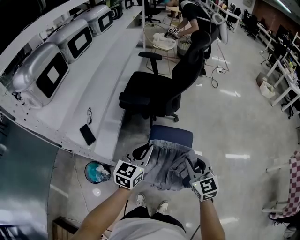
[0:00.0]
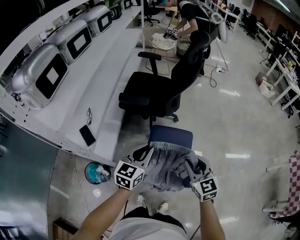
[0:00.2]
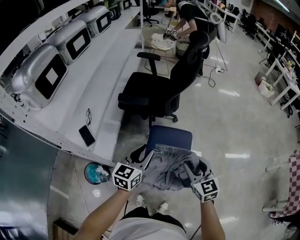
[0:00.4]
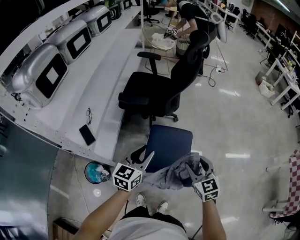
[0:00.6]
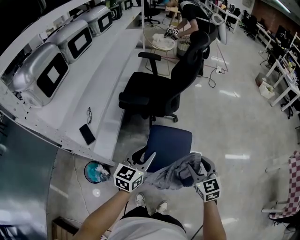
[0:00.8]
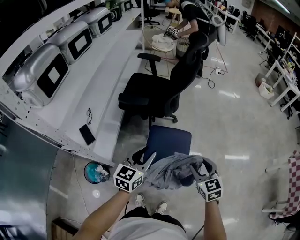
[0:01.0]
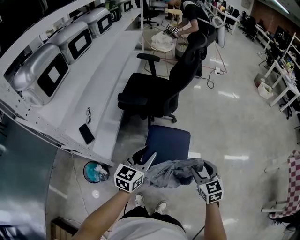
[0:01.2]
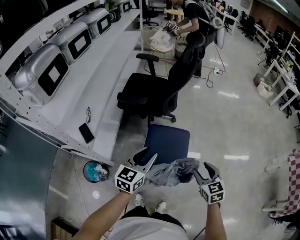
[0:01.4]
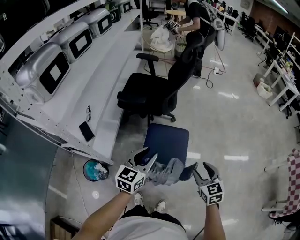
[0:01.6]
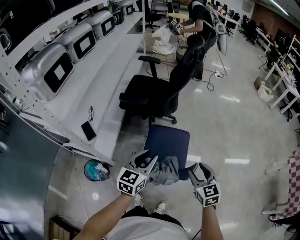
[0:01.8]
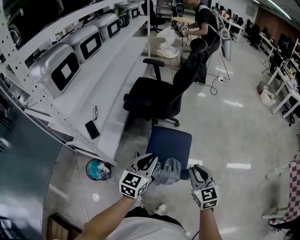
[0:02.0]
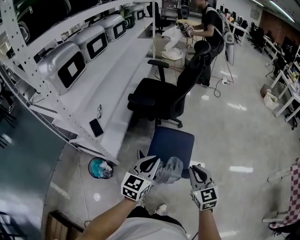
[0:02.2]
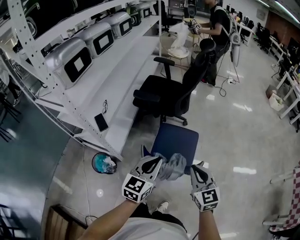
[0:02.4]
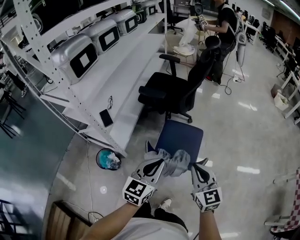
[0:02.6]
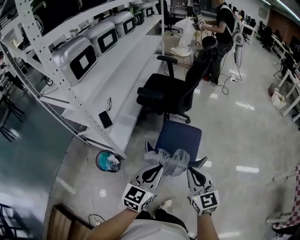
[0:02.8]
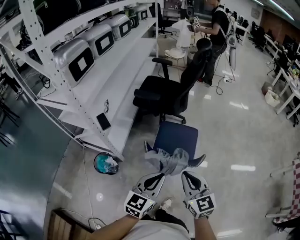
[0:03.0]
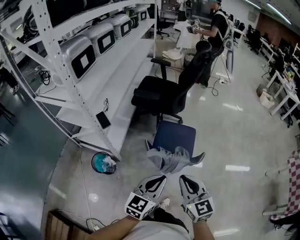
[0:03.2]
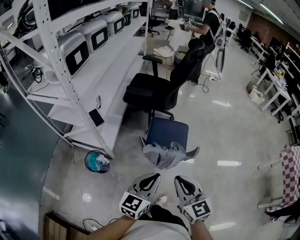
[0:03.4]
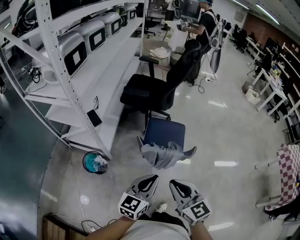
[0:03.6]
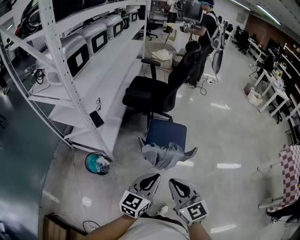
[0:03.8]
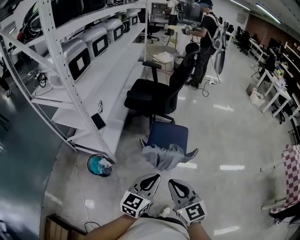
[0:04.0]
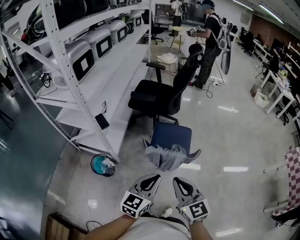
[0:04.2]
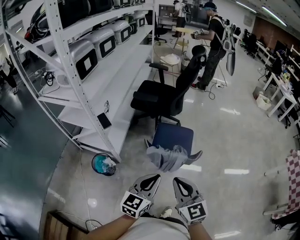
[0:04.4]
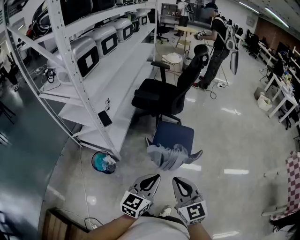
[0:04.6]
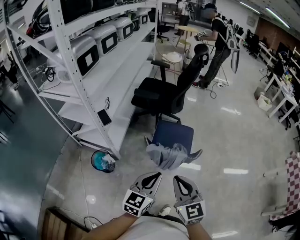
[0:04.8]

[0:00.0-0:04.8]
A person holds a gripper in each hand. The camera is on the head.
0:00.0 to 0:01.6: The right gripper goes some 10 cm to the right and backward, and opens up. The left gripper goes some 5 cm backward, and opens.
0:01.6 to 0:03.2: The left gripper moves backward, roughly 25 cm, and closes up; the right gripper travels backward, to the left and upward by some 25 cm, swivels roughly 20 degrees, and closes its fingers.
0:03.2 to 0:04.8: The right gripper is displaced backward by some 5 cm.

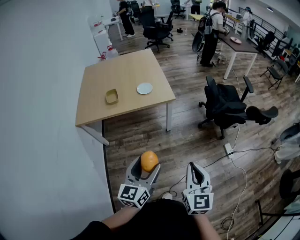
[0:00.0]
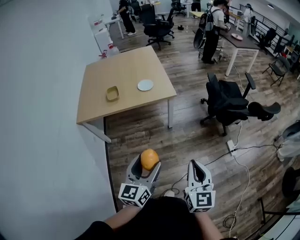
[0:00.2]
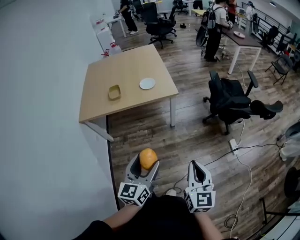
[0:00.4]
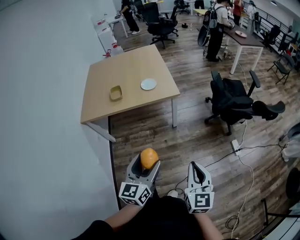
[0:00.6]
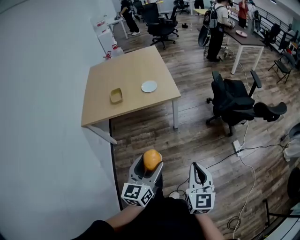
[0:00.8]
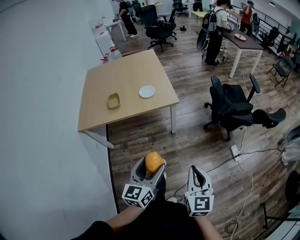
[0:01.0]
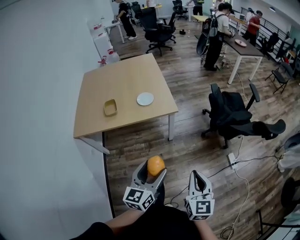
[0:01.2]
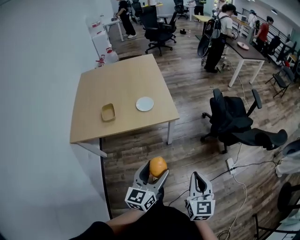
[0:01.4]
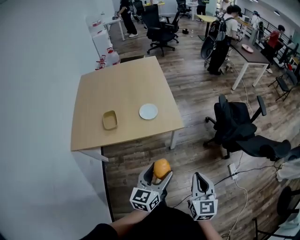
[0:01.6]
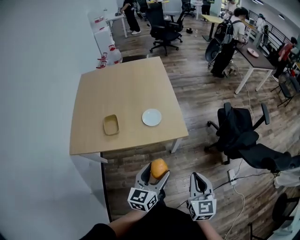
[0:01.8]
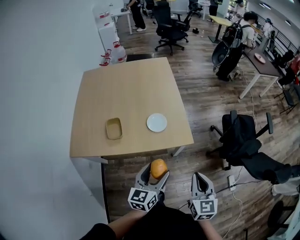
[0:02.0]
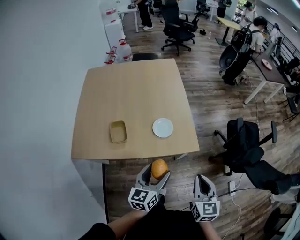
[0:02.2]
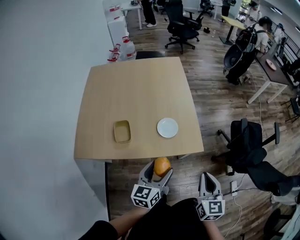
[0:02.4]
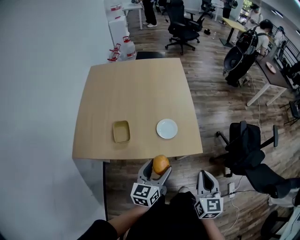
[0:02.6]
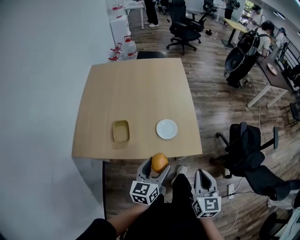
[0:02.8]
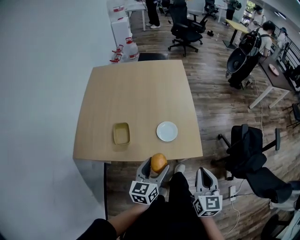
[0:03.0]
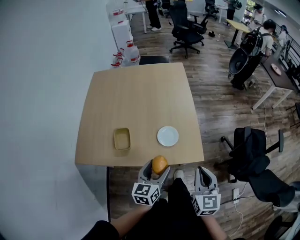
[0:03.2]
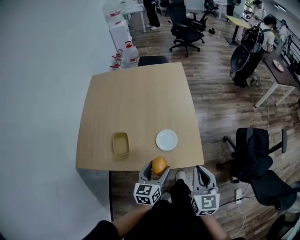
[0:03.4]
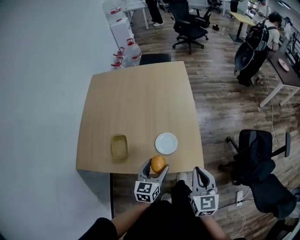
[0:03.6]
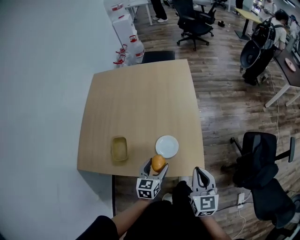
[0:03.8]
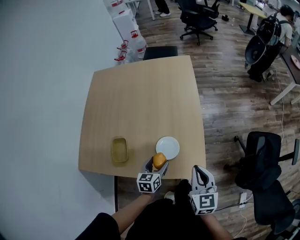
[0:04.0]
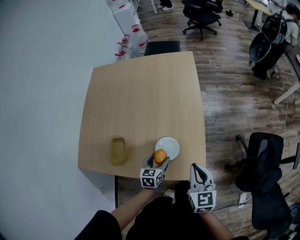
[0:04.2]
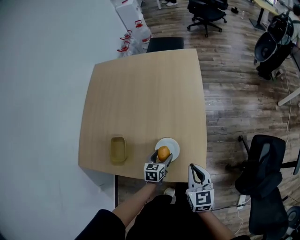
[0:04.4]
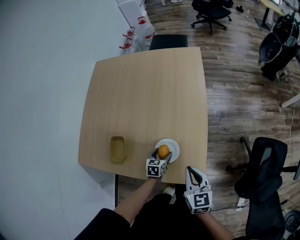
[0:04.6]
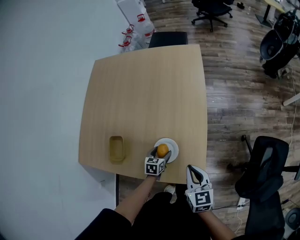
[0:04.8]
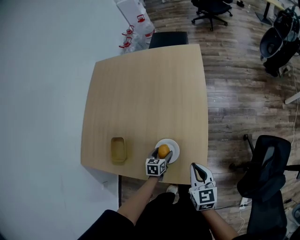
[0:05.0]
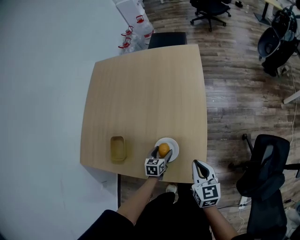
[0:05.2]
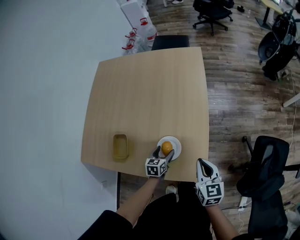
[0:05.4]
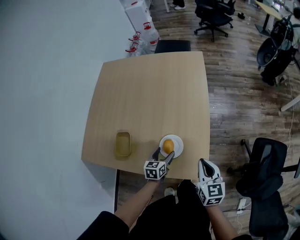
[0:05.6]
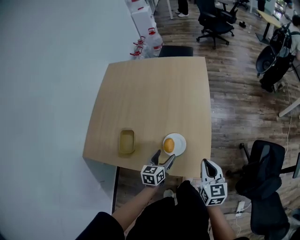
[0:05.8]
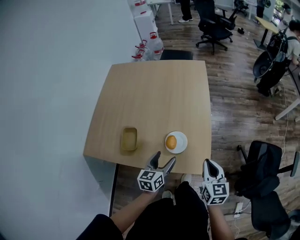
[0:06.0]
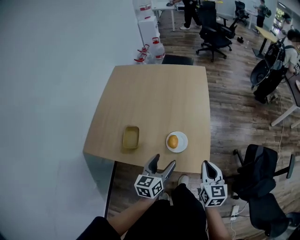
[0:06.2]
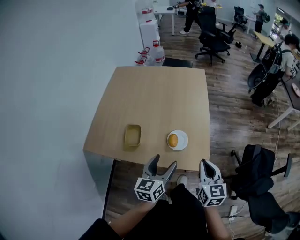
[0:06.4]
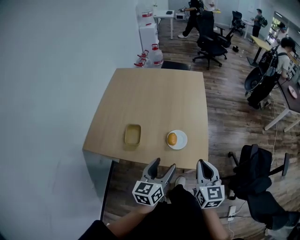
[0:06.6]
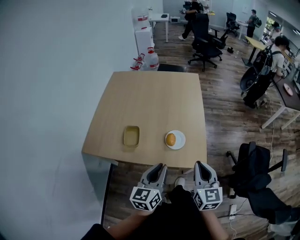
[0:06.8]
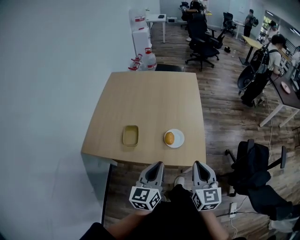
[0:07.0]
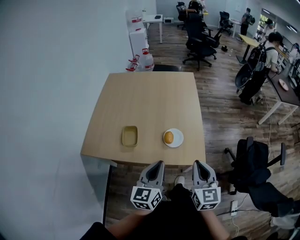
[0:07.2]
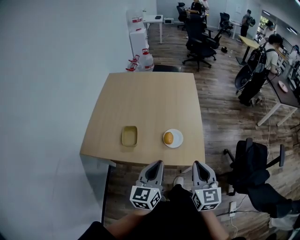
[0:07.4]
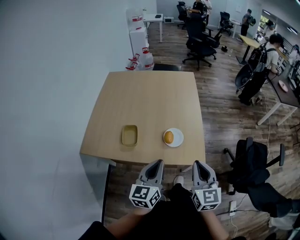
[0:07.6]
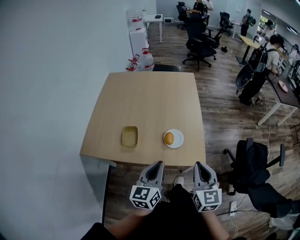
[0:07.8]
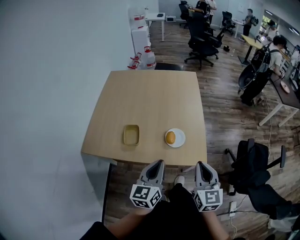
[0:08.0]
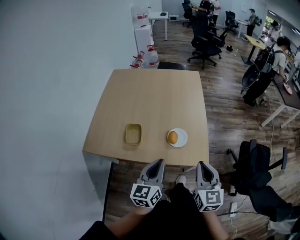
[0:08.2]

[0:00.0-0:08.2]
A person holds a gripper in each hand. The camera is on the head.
0:00.0 to 0:01.6: Both grippers move forward, approximately 25 cm.
0:01.6 to 0:03.2: Both grippers travel together forward and to the left, approximately 30 cm.
0:03.2 to 0:05.0: The right gripper travels forward and downward by roughly 25 cm, and swivels approximately 30 degrees, while the left gripper shifts approximately 35 cm downward and forward, and tips its fingers downward by about 30 degrees.
0:05.0 to 0:06.6: The right gripper travels backward, upward and to the left by about 20 cm. Meanwhile the left gripper shifts some 40 cm upward and backward, and points its fingers some 40 degrees further upward.
0:06.6 to 0:08.2: The left gripper closes.

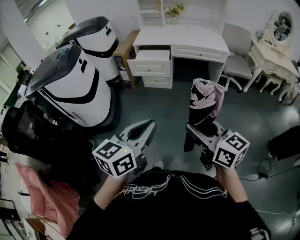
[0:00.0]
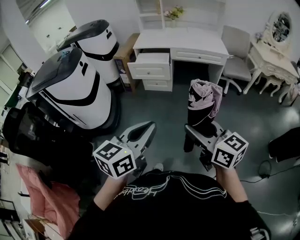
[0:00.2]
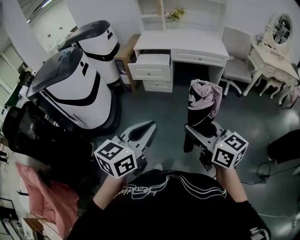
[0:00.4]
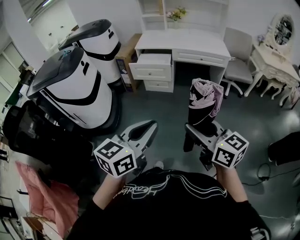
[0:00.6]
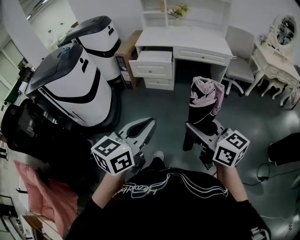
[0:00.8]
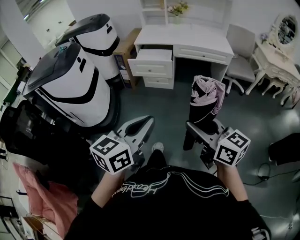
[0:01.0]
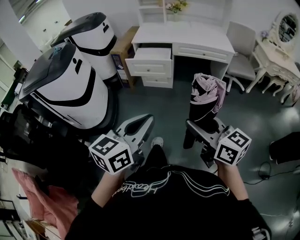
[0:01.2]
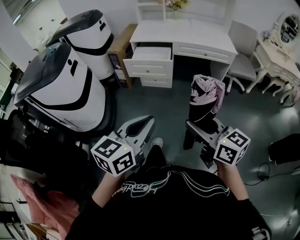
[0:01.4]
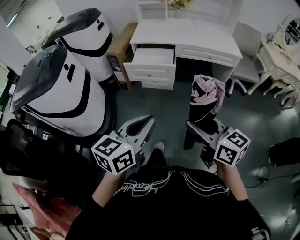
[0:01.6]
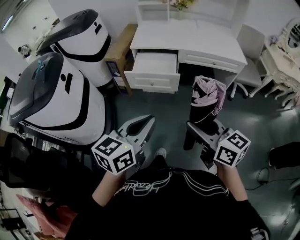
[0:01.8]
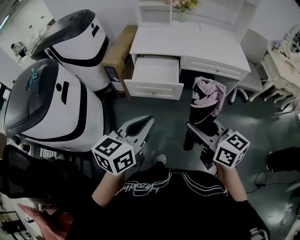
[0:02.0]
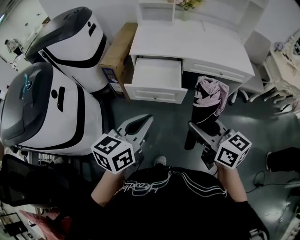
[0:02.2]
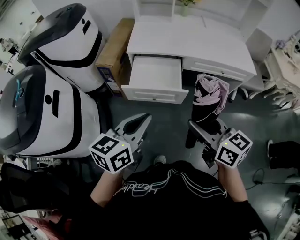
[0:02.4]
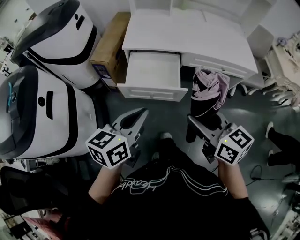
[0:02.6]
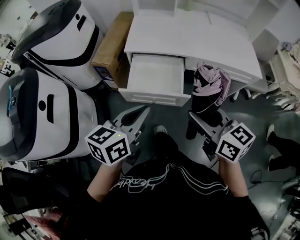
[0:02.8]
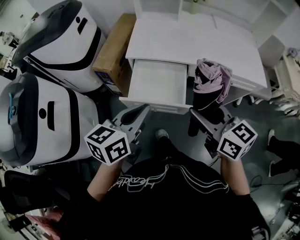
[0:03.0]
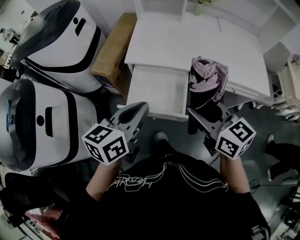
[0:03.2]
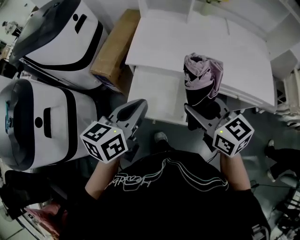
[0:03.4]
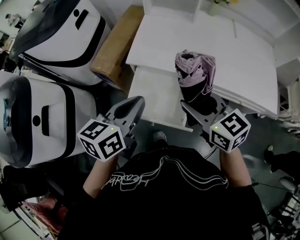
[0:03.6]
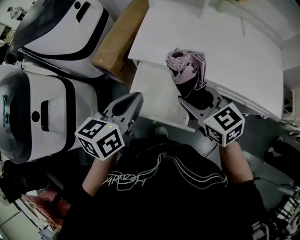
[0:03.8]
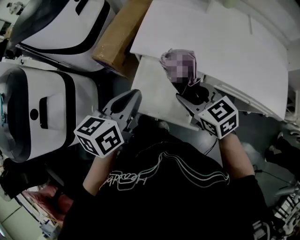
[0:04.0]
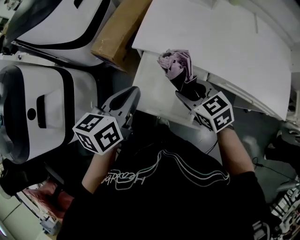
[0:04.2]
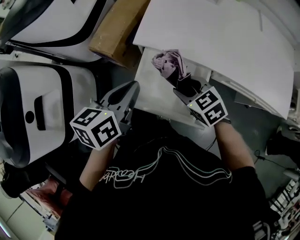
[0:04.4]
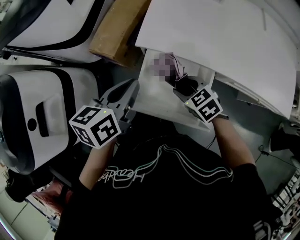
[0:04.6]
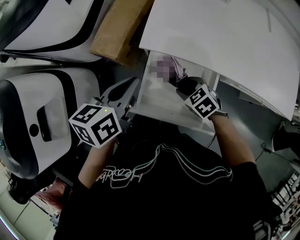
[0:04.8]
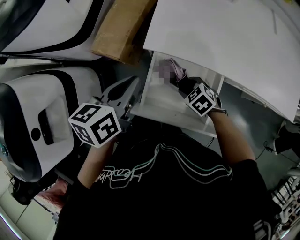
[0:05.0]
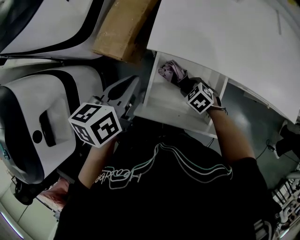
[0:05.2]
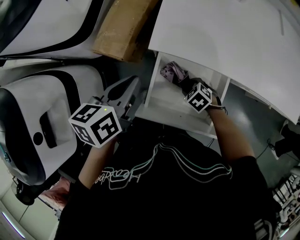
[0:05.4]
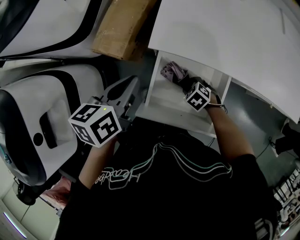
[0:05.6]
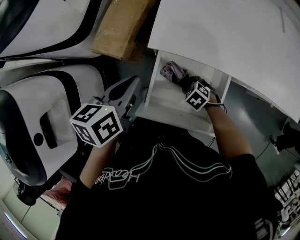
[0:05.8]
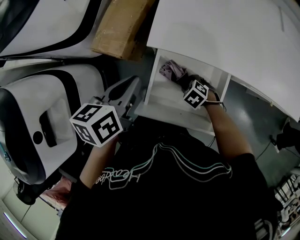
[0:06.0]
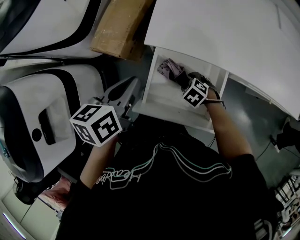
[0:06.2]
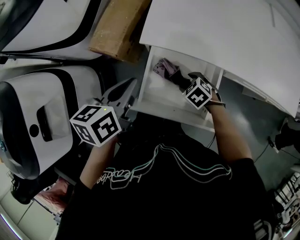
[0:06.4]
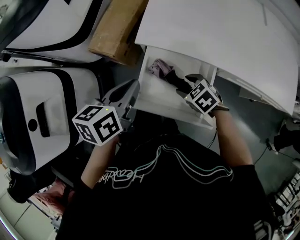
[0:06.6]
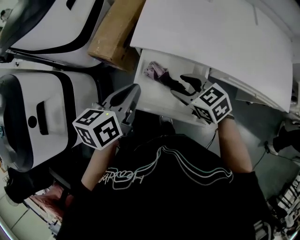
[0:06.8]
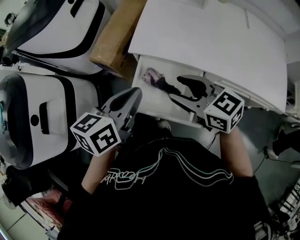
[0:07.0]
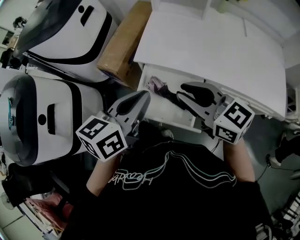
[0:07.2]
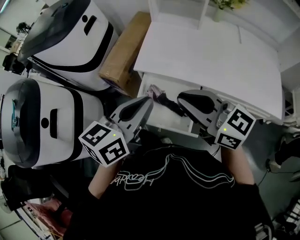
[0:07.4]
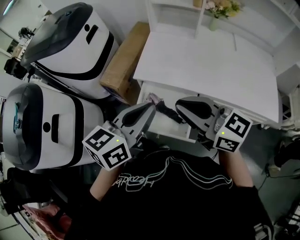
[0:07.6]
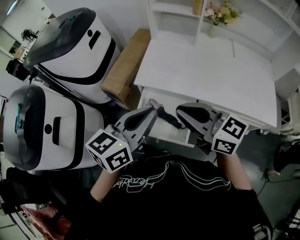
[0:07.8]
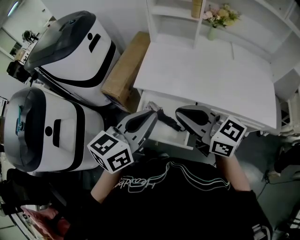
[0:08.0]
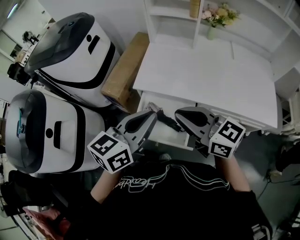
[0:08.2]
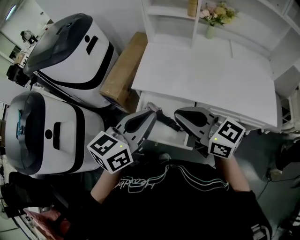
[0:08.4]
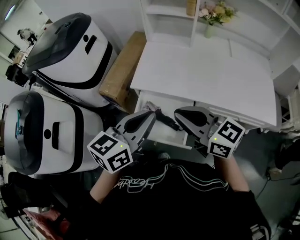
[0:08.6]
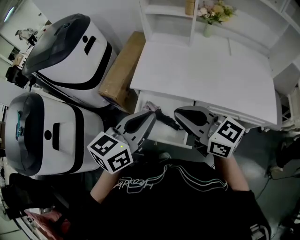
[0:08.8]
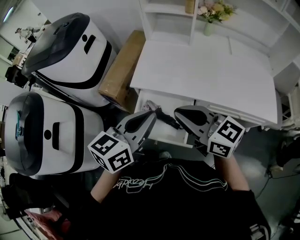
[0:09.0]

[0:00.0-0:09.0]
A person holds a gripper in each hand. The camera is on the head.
0:00.0 to 0:01.6: The two grippers go about 25 cm forward.
0:01.6 to 0:03.0: The pair of grippers is taken forward, about 50 cm.
0:03.0 to 0:04.4: The two grippers go some 30 cm forward and downward. The left gripper turns by about 20 degrees. Meanwhile the right gripper angles its fingers downward, by about 30 degrees.
0:04.4 to 0:06.0: The left gripper moves some 10 cm; the right gripper travels downward by about 20 cm, and turns by about 30 degrees.
0:06.0 to 0:07.6: The left gripper ends up approximately 30 cm from where it was, and turns by approximately 30 degrees; the right gripper shifts about 50 cm upward, tilts its fingers roughly 70 degrees upward, and closes.
0:07.6 to 0:09.0: There are only small adjustments of the grippers.

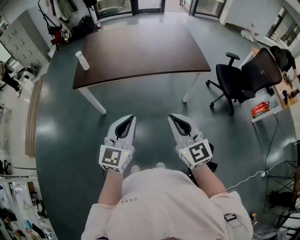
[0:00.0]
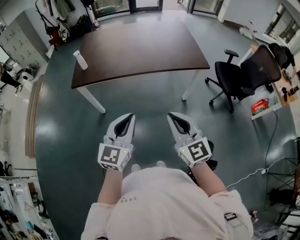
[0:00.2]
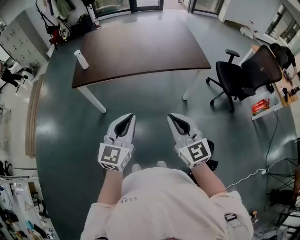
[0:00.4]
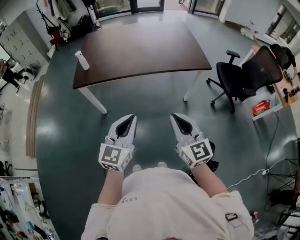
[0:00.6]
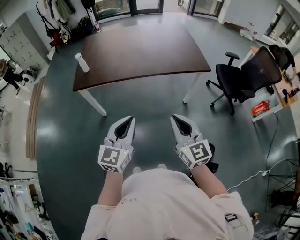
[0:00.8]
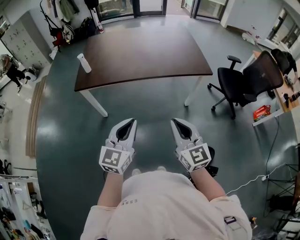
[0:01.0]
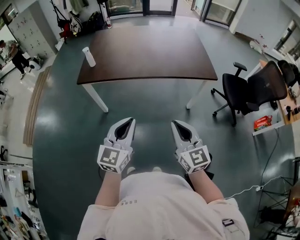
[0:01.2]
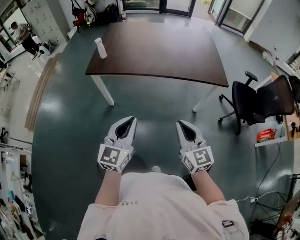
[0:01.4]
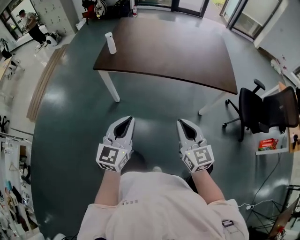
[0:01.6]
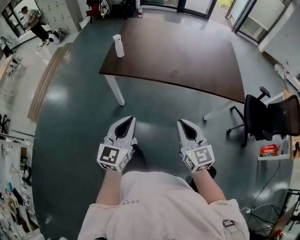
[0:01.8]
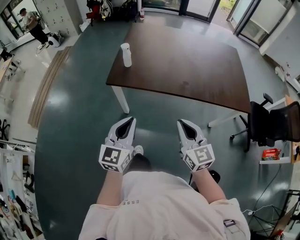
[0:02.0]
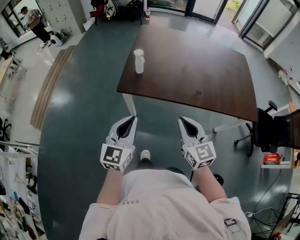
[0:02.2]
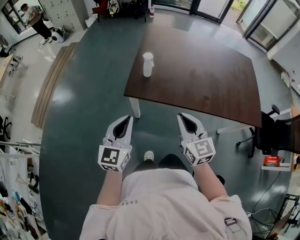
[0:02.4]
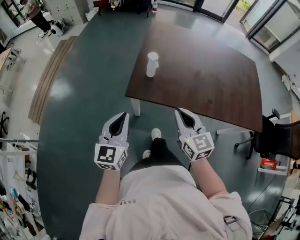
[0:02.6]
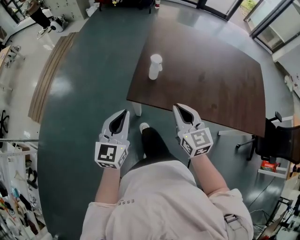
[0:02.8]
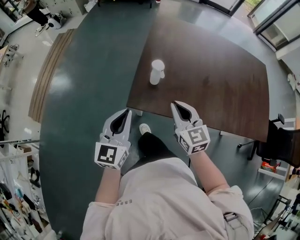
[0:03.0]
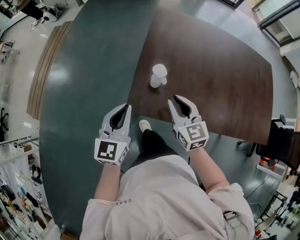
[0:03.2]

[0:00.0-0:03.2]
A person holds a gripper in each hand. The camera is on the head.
0:00.0 to 0:01.6: The left gripper shifts about 5 cm to the left. Meanwhile the right gripper travels forward and downward by about 10 cm.
0:01.6 to 0:03.2: Both grippers are carried forward and to the left, approximately 60 cm.
